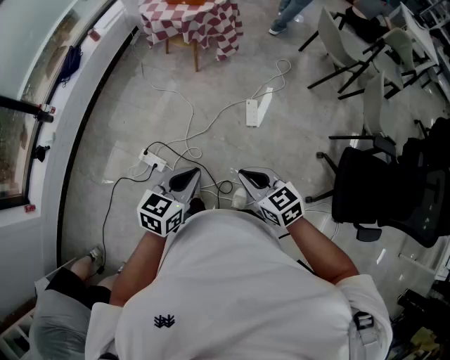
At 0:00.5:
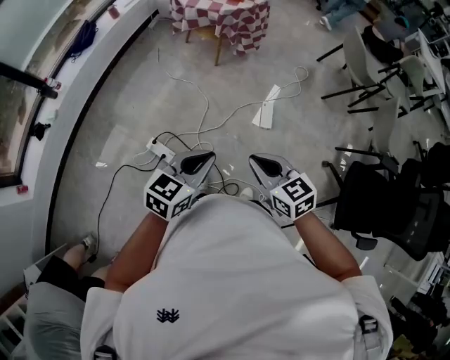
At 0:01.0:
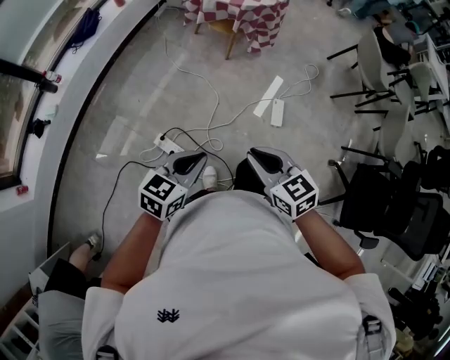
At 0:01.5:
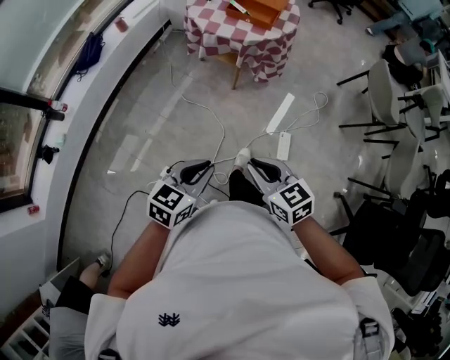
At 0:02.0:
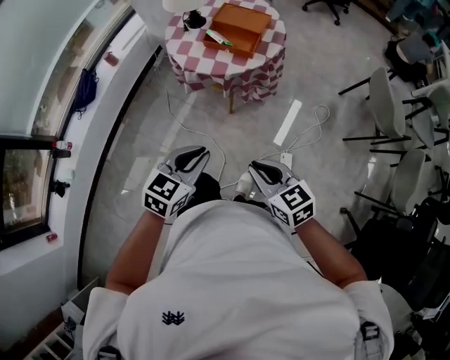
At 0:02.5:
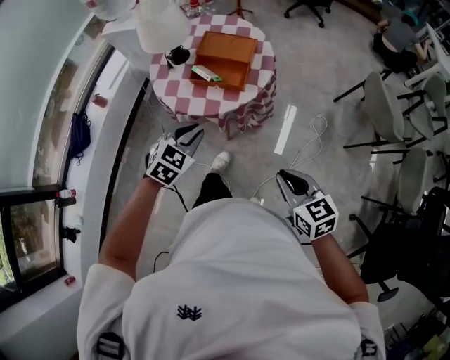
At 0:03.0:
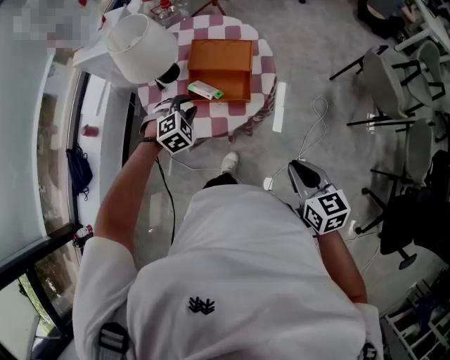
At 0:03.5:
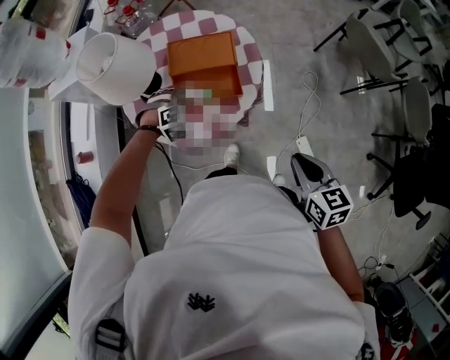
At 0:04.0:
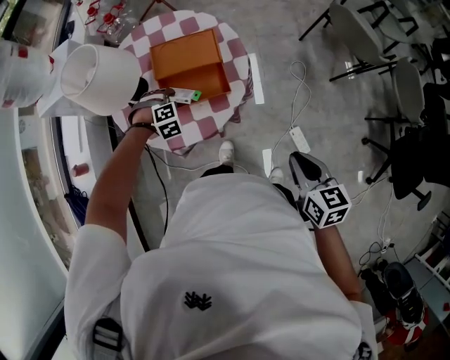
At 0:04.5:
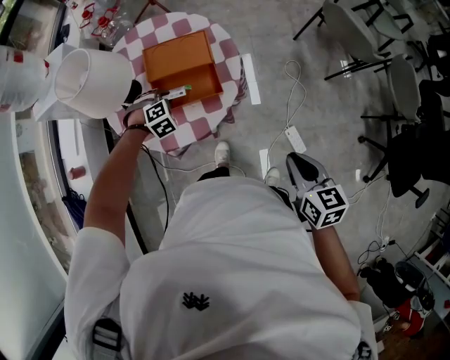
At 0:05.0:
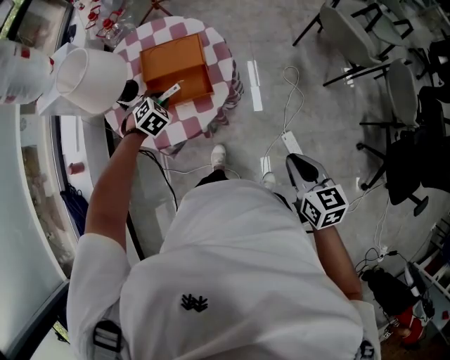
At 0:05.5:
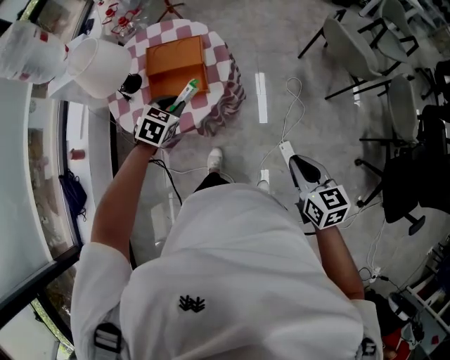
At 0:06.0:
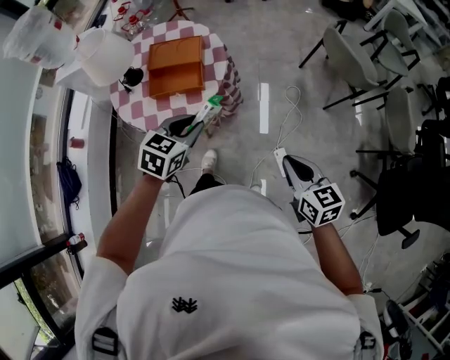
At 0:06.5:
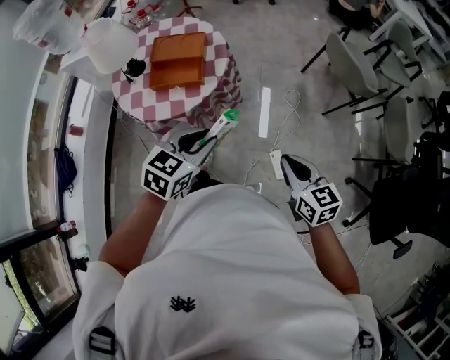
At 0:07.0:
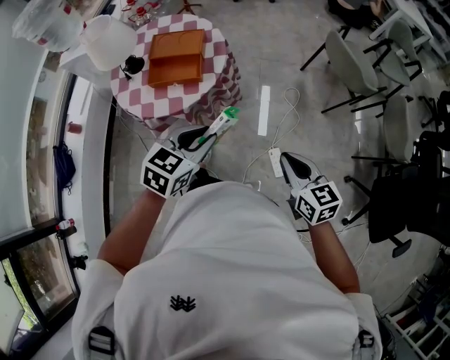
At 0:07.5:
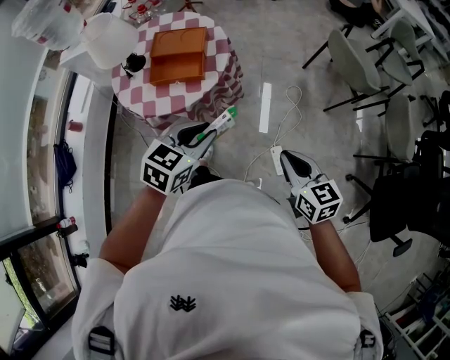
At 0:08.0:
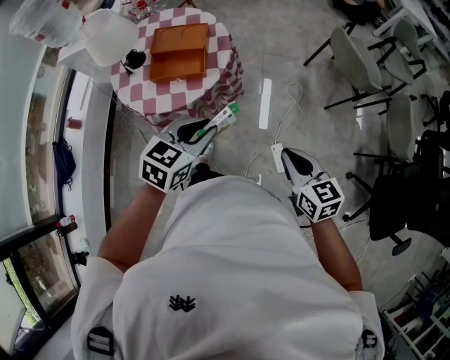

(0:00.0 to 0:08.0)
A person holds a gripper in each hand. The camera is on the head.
0:00.0 - 0:02.0: The pair of grippers is taken forward, roughly 50 cm.
0:02.0 - 0:04.0: The right gripper goes approximately 25 cm forward, and changes its angle by about 60 degrees. The left gripper heads forward and downward, covering approximately 60 cm, and twists some 80 degrees clockwise, seen from behind.
0:04.0 - 0:06.0: The right gripper travels to the right and backward by roughly 15 cm. Meanwhile the left gripper travels upward, to the right and backward by approximately 35 cm, and rotates around the line of its fingers by approximately 60 degrees, counterclockwise from behind.
0:06.0 - 0:08.0: The left gripper heads backward and to the right, covering approximately 5 cm.

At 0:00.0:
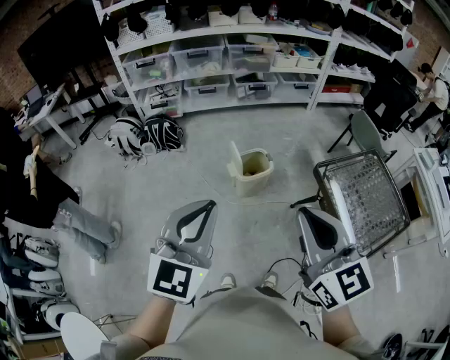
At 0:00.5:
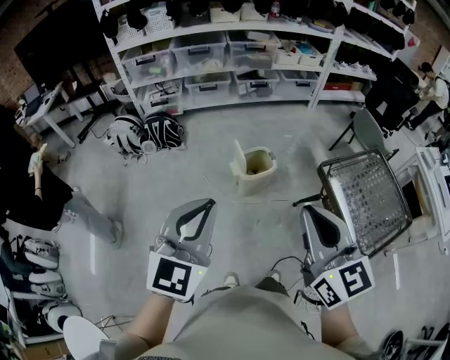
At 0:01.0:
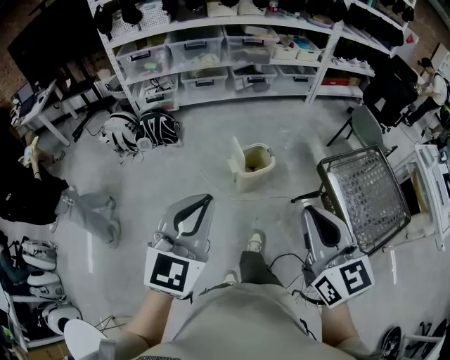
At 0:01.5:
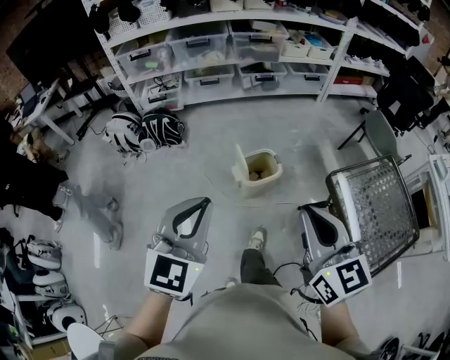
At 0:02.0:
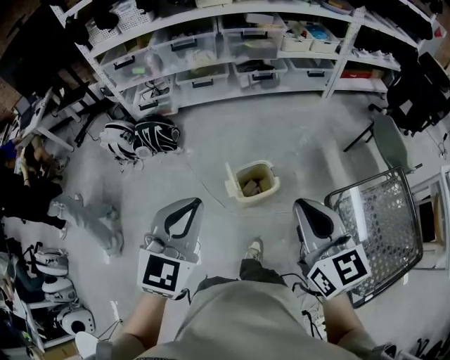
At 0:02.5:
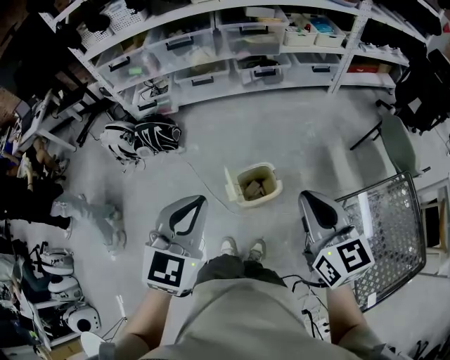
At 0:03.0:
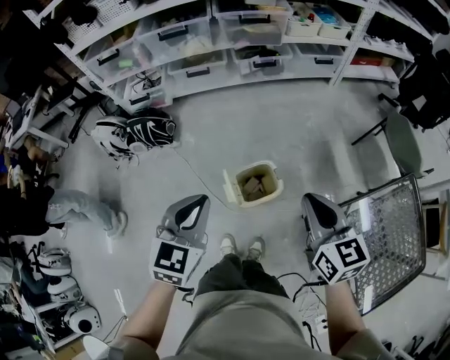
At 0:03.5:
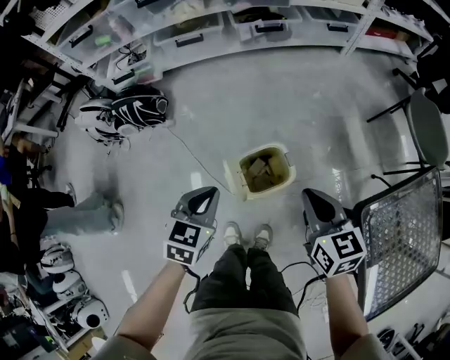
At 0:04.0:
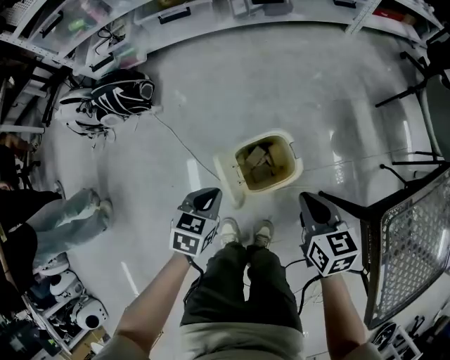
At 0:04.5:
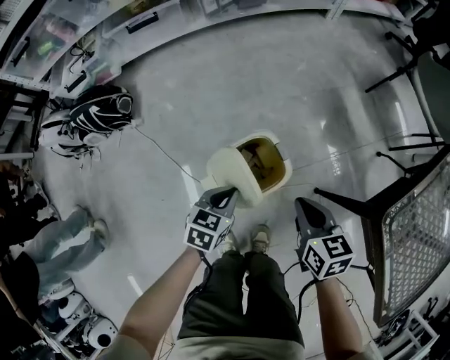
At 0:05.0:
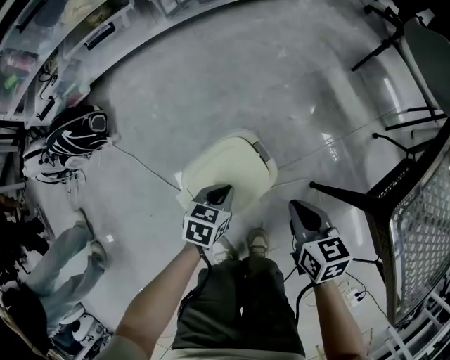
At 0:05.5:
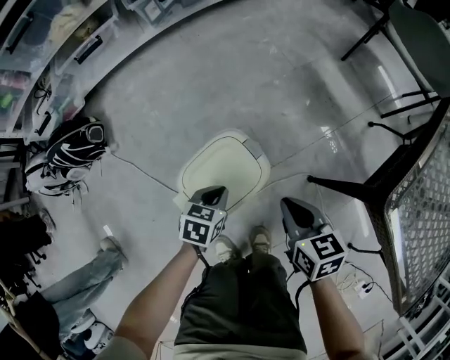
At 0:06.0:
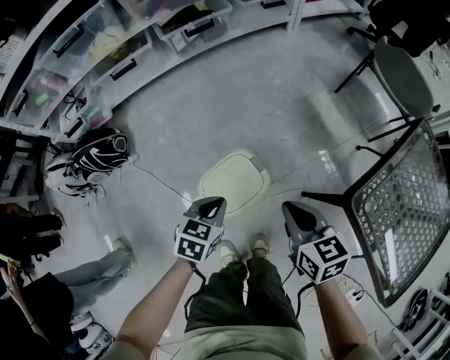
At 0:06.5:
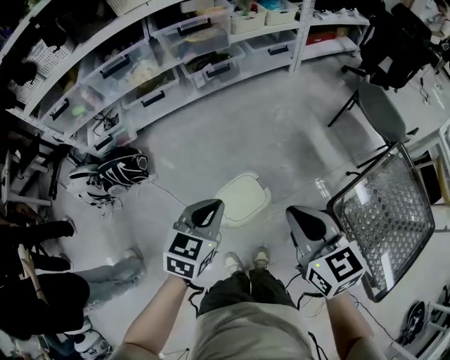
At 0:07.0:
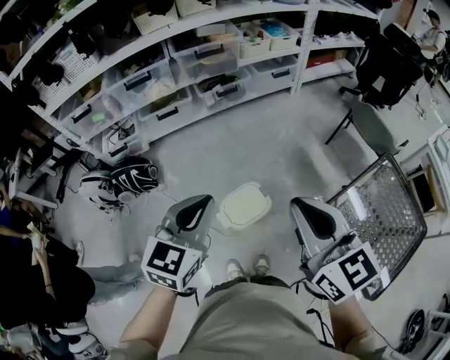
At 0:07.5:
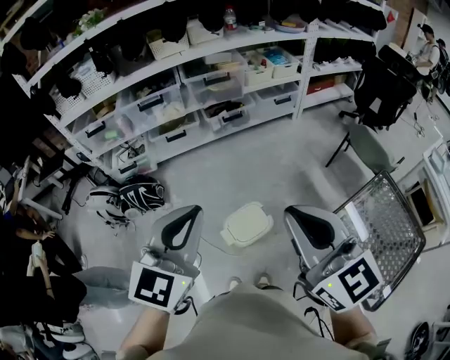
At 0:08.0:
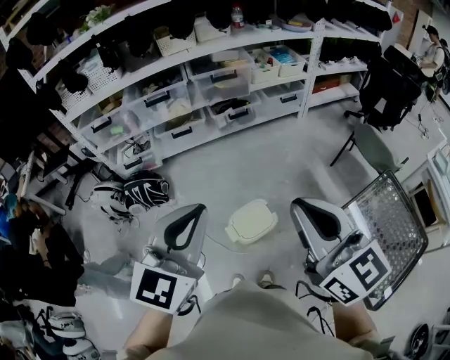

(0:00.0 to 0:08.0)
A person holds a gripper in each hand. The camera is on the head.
0:00.0 - 0:02.0: The grippers both shift forward by about 30 cm.
0:02.0 - 0:04.0: The left gripper heads downward, covering some 50 cm, and tilts its fingers roughly 30 degrees downward. Meanwhile the right gripper heads downward and forward, covering some 50 cm, and turns by approximately 30 degrees.
0:04.0 - 0:06.0: The left gripper shifts some 15 cm to the right and forward, and moves some 15 cm downward and comes back. Meanwhile the right gripper travels to the right by approximately 5 cm, and moves roughly 15 cm downward and comes back.
0:06.0 - 0:08.0: The grippers both shift upward by approximately 50 cm. The left gripper tilts its fingers approximately 40 degrees upward, while the right gripper angles its fingers upward, by approximately 30 degrees.

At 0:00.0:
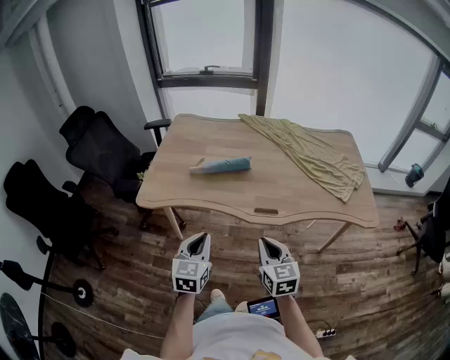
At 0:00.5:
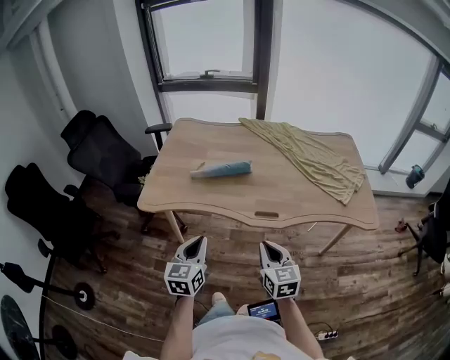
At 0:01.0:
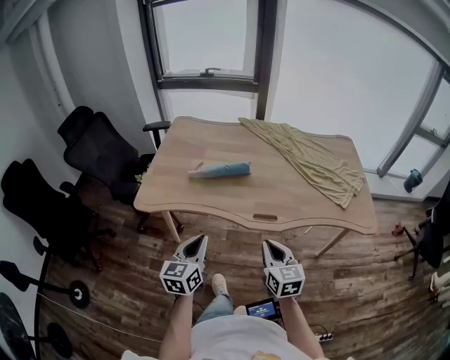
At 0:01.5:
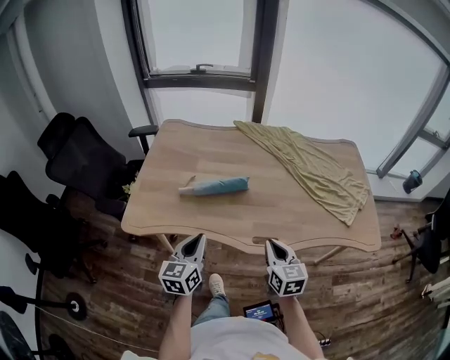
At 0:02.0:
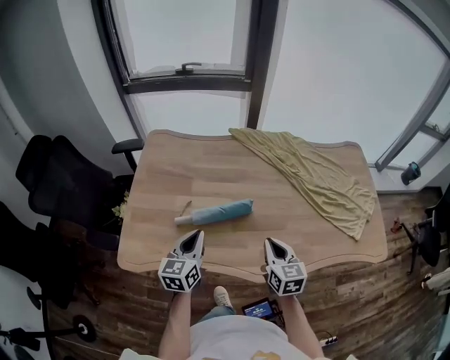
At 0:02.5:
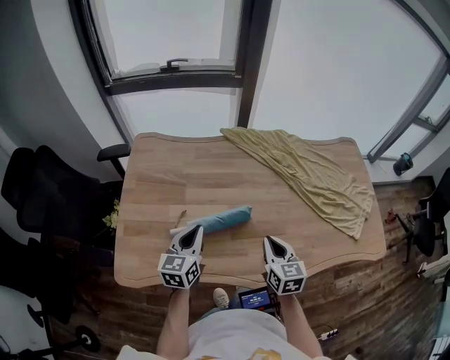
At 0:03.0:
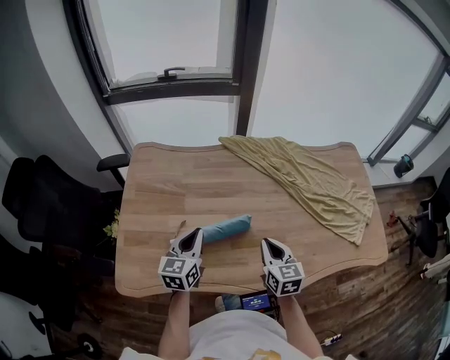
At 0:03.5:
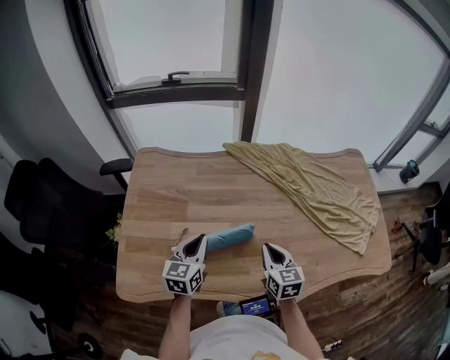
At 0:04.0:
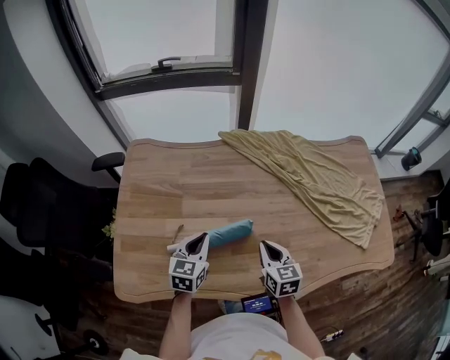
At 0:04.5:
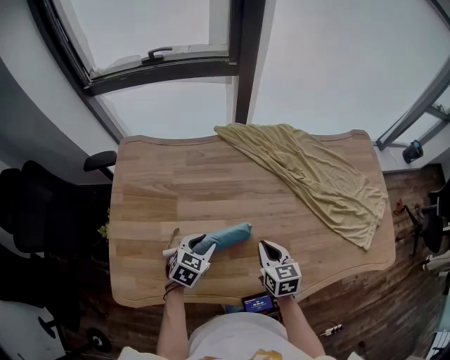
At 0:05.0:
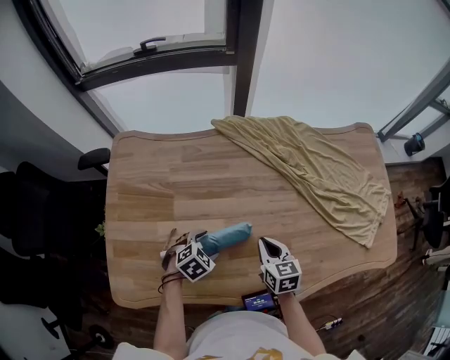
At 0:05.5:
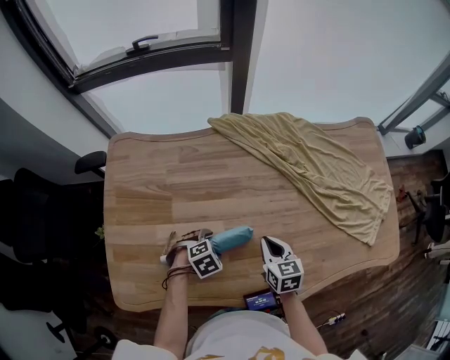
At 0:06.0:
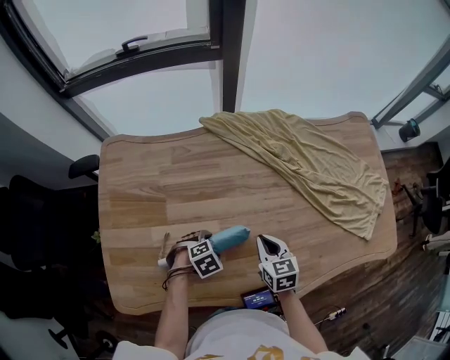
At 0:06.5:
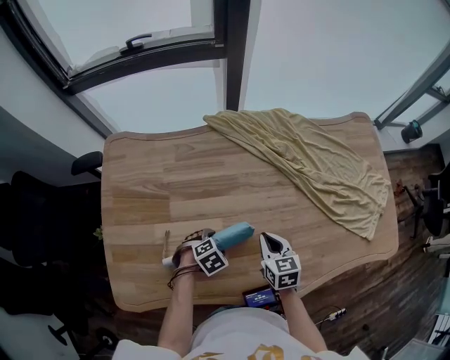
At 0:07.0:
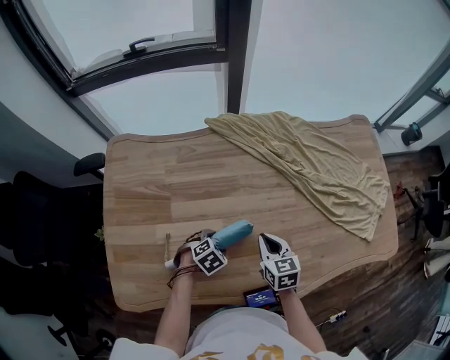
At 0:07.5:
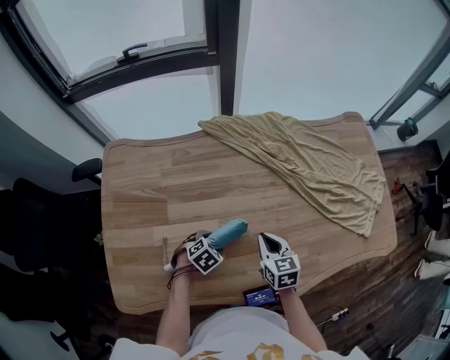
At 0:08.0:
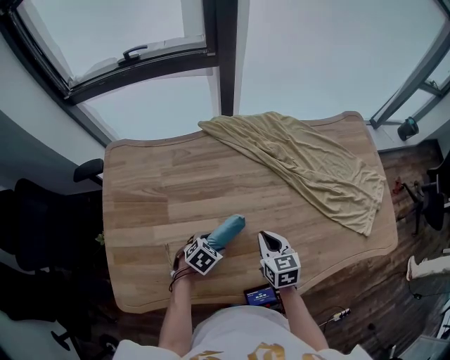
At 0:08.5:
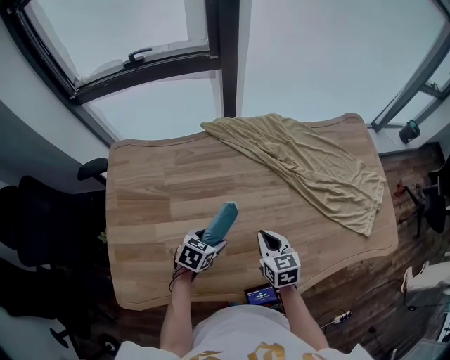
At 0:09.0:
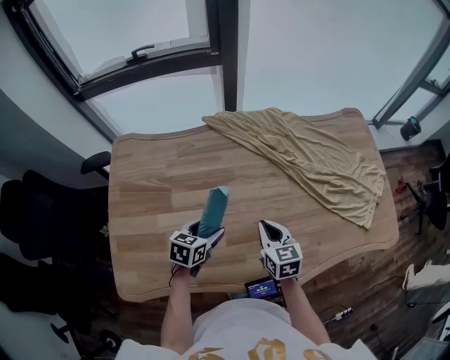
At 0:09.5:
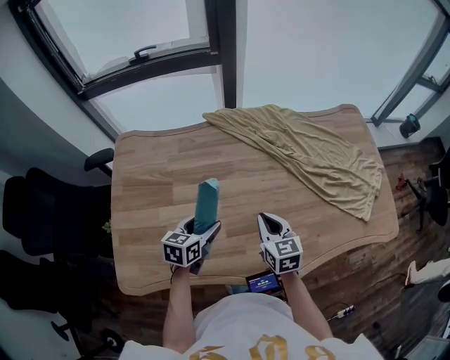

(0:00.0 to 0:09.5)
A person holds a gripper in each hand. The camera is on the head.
0:00.0 - 0:02.0: The two grippers go roughly 35 cm forward.
0:02.0 - 0:04.0: The grippers both shift forward and downward by approximately 15 cm.
0:04.0 - 0:05.5: The right gripper goes some 5 cm downward. Meanwhile the left gripper goes some 15 cm downward, angles its fingers downward, by about 40 degrees, and opens up.
0:05.5 - 0:07.5: There are only small adjustments of the grippers.
0:07.5 - 0:09.5: The right gripper heads upward, covering roughly 5 cm, while the left gripper heads upward, covering roughly 15 cm, and angles its fingers upward, by some 30 degrees.

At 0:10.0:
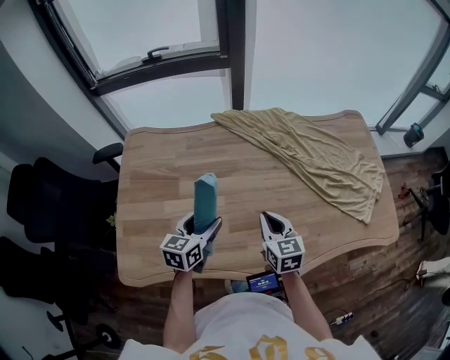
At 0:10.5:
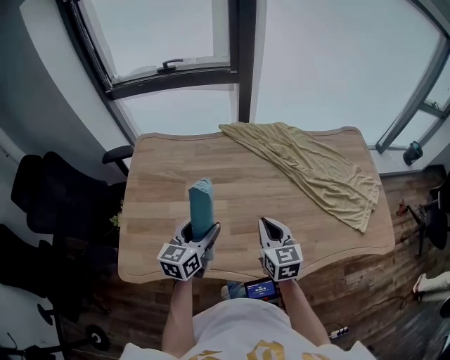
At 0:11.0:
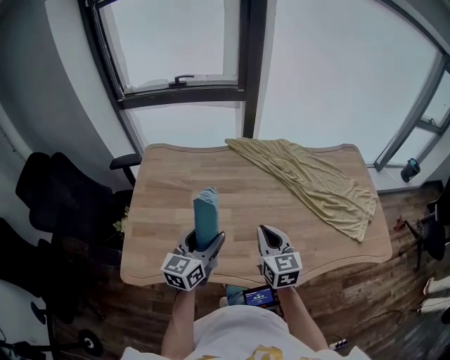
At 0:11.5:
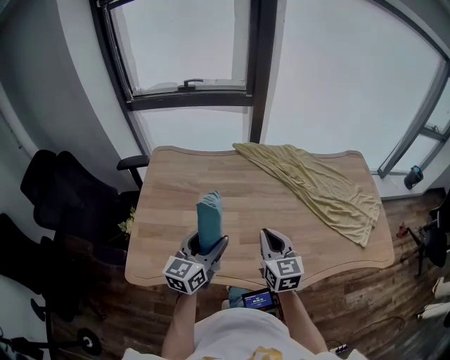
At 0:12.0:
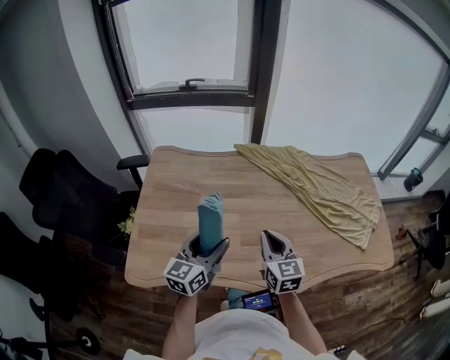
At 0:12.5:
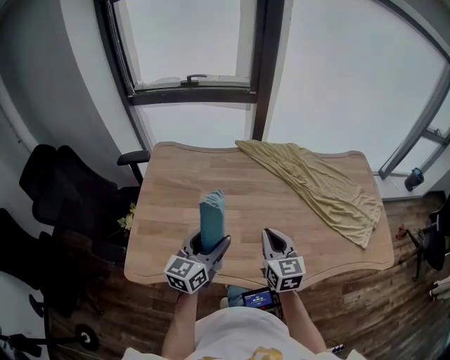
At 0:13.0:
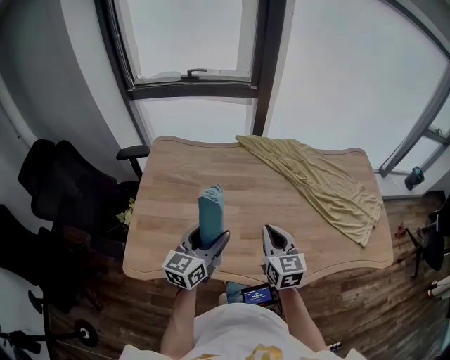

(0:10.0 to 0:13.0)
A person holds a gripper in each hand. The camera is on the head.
0:10.0 - 0:11.5: The left gripper is displaced upward and backward by roughly 15 cm, and turns by approximately 20 degrees. Meanwhile the right gripper shifts approximately 10 cm upward, backward and to the left.
0:11.5 - 0:13.0: Both grippers stay put.
